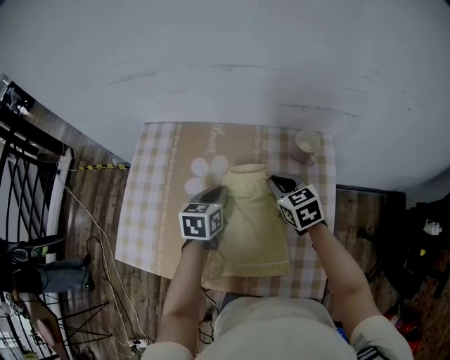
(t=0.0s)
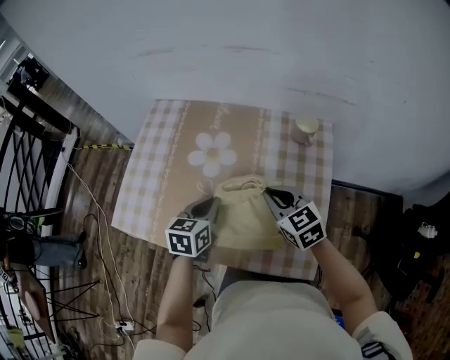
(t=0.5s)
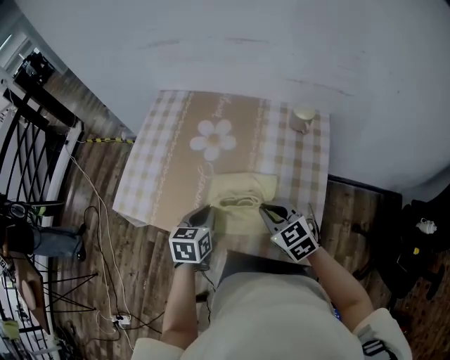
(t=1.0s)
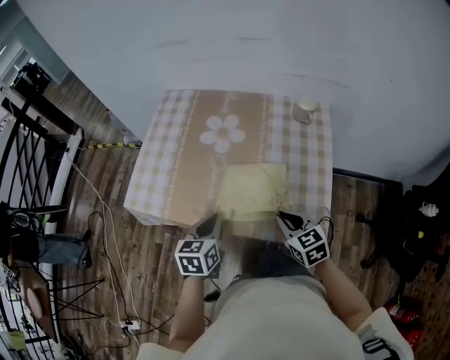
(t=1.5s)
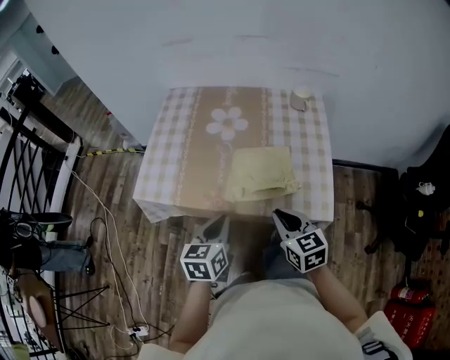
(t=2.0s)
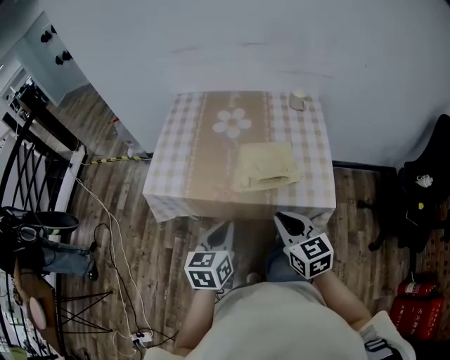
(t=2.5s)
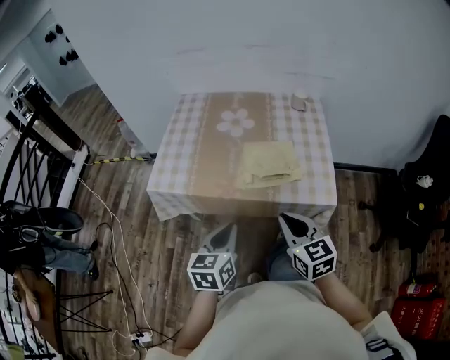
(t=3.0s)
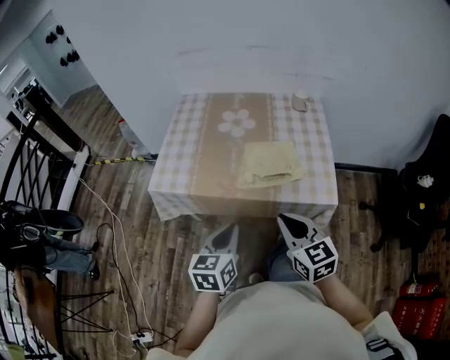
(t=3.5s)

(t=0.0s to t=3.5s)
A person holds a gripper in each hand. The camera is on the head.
t=0.0s - t=2.0s: Both grippers move backward, some 35 cm.
t=2.0s - t=3.5s: The right gripper is displaced backward and upward by about 10 cm. Meanwhile the left gripper heads backward, covering some 10 cm.

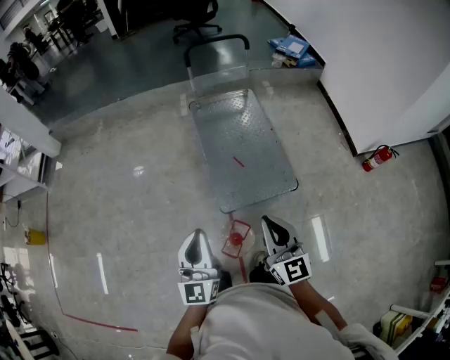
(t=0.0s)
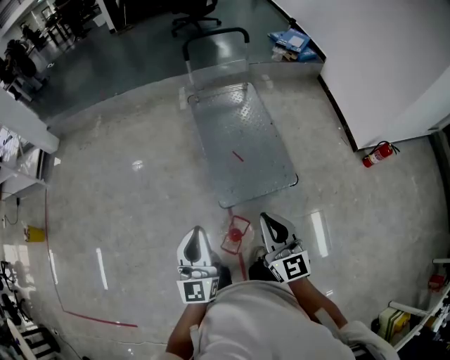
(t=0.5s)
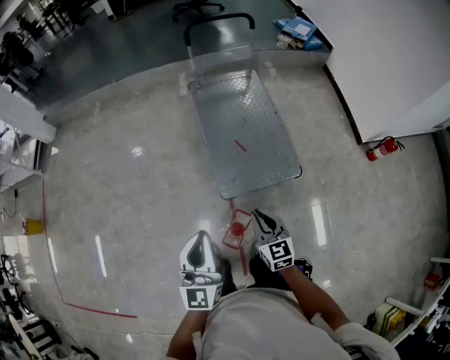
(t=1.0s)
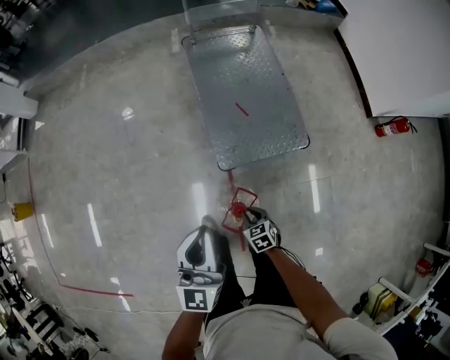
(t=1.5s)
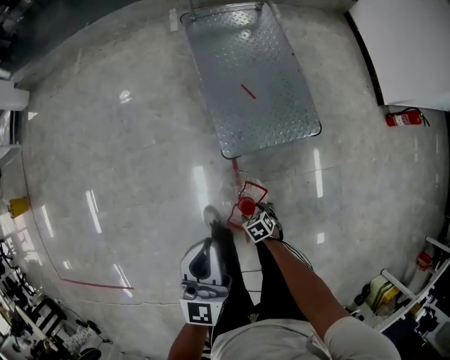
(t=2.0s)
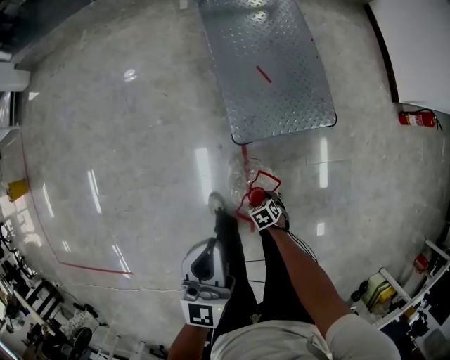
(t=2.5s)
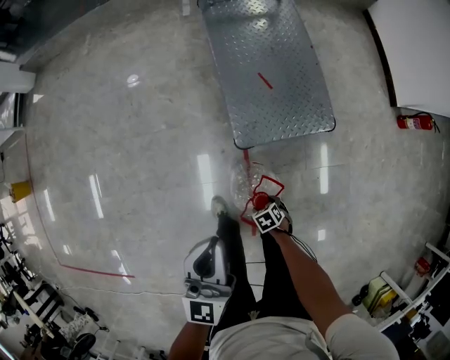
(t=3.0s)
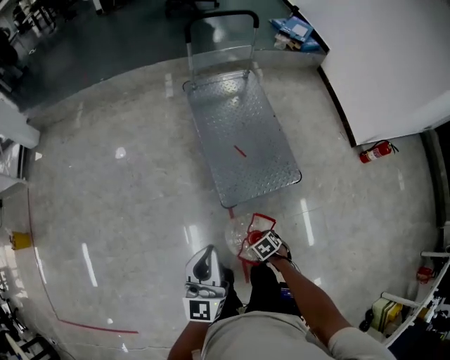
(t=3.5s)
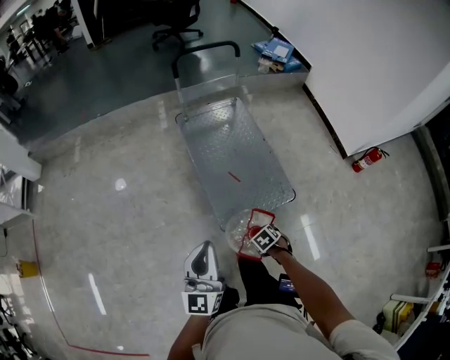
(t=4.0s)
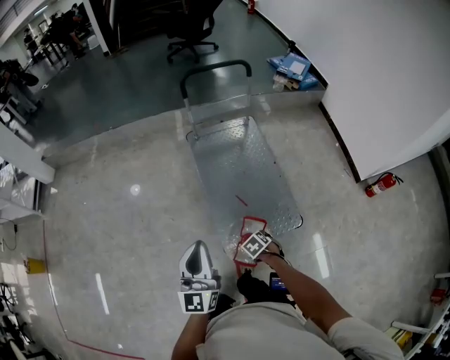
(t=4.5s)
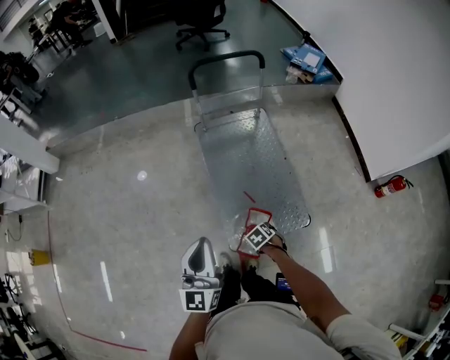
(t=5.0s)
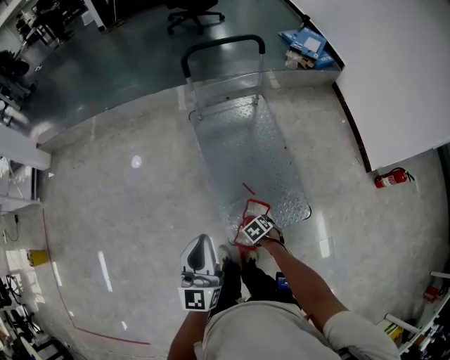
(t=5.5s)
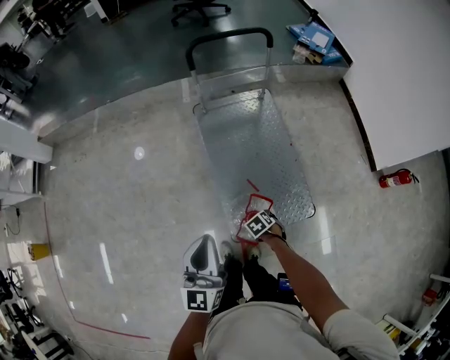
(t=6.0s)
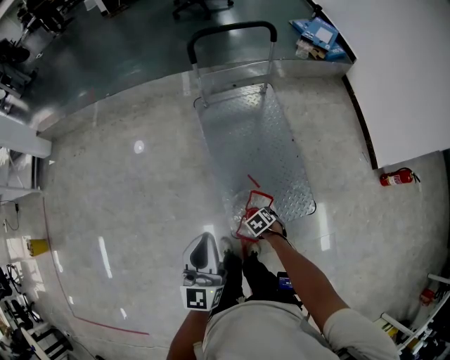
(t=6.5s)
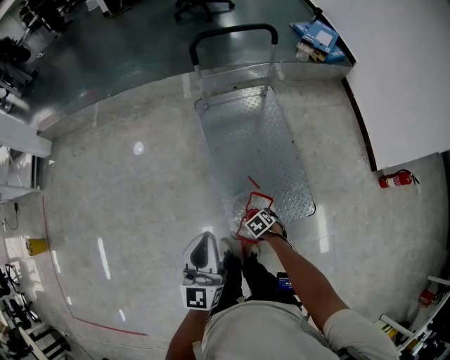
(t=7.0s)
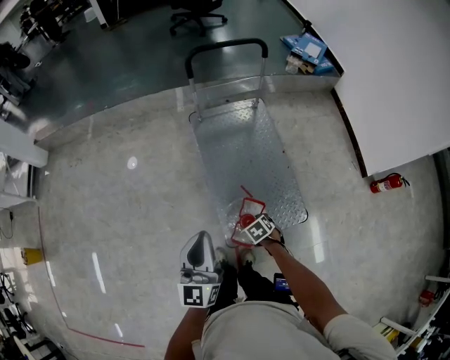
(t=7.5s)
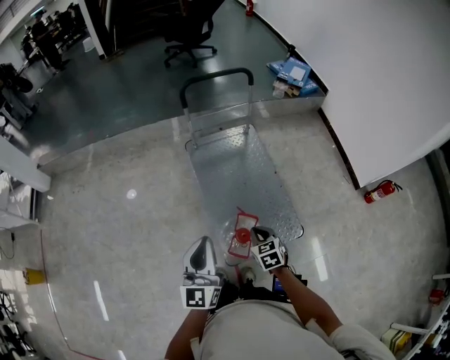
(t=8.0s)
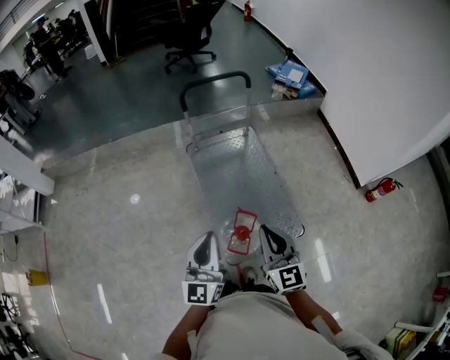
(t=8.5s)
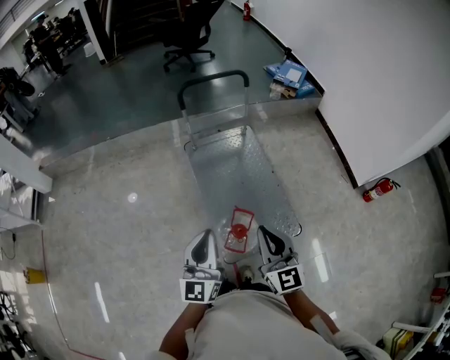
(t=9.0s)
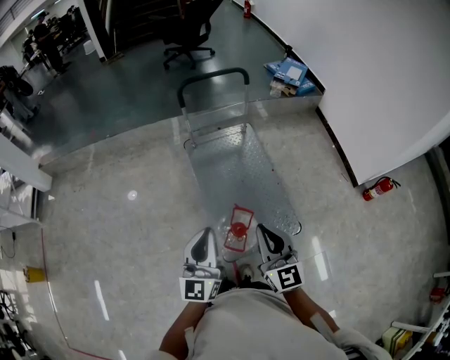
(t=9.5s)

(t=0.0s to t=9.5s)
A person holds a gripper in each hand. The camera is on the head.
t=0.0s - t=2.0s: The right gripper shifts approximately 60 cm downward, tips its fingers downward by about 70 degrees, and opens. The left gripper goes some 15 cm downward.
t=2.0s - t=4.0s: The left gripper moves upward, some 15 cm, while the right gripper is displaced upward by some 25 cm.
t=4.0s - t=5.5s: The left gripper shifts by approximately 25 cm; the right gripper moves about 25 cm.
t=5.5s - t=7.5s: The grippers move only a little.
t=7.5s - t=9.5s: The left gripper heads upward, covering roughly 5 cm. The right gripper is displaced upward by some 40 cm, points its fingers some 70 degrees further upward, and closes up.

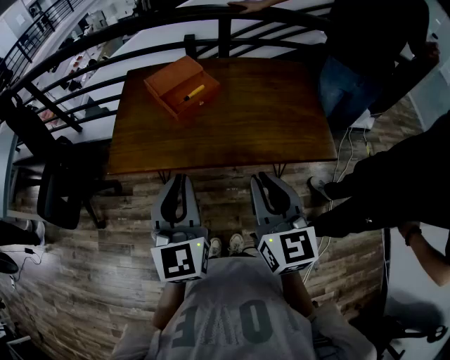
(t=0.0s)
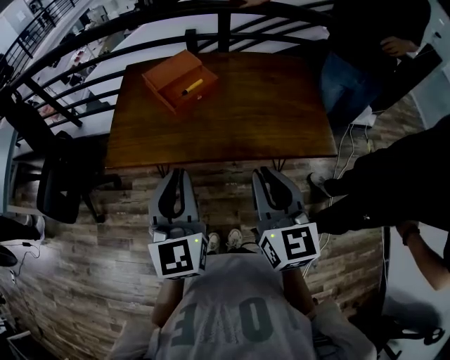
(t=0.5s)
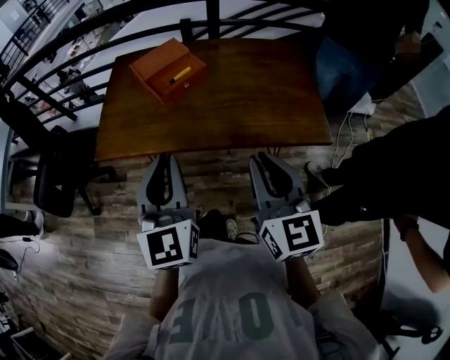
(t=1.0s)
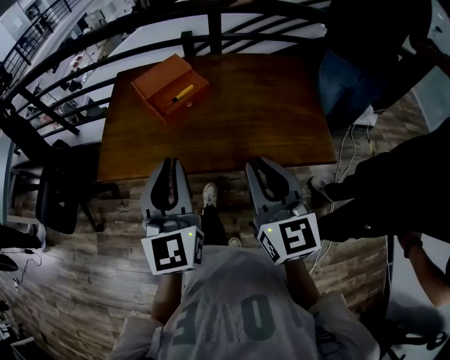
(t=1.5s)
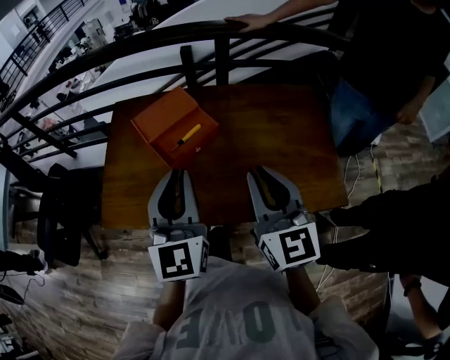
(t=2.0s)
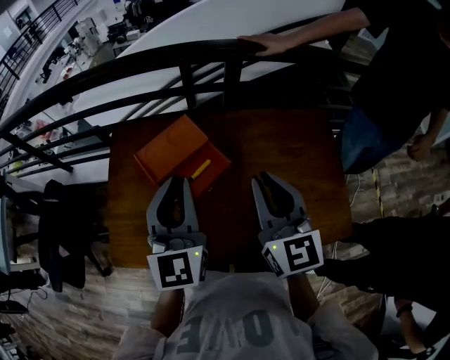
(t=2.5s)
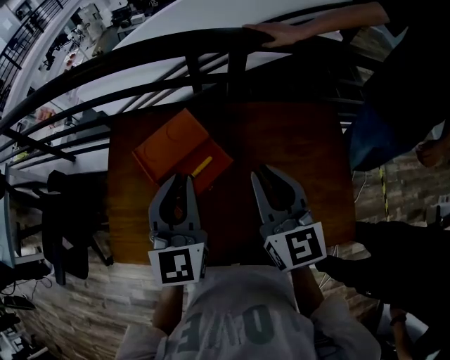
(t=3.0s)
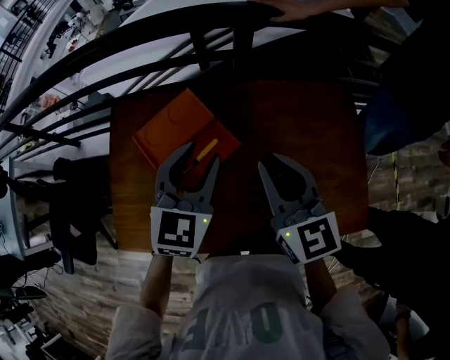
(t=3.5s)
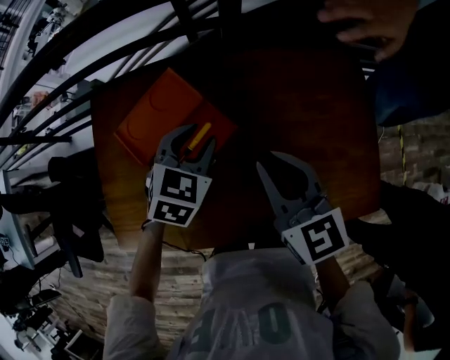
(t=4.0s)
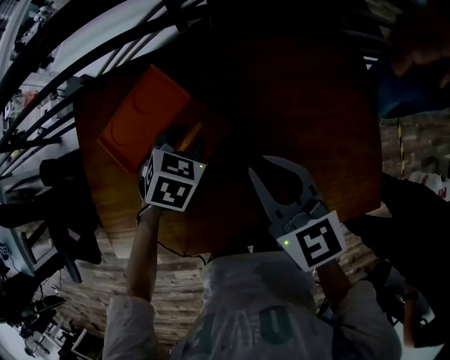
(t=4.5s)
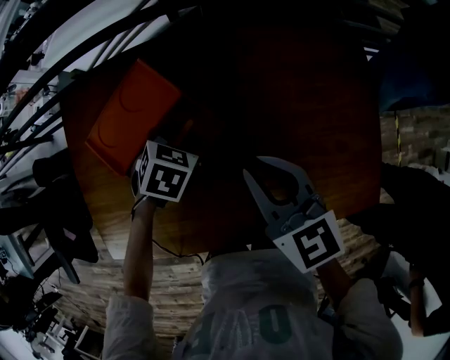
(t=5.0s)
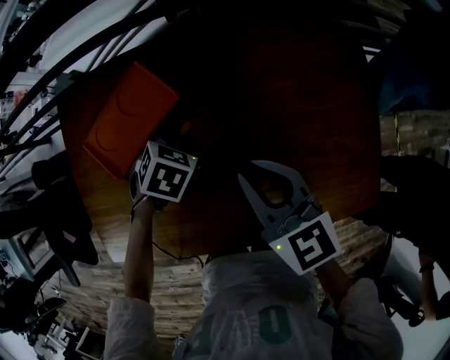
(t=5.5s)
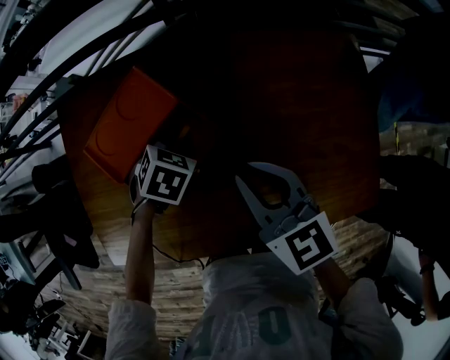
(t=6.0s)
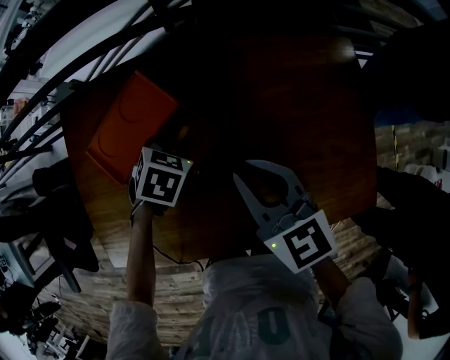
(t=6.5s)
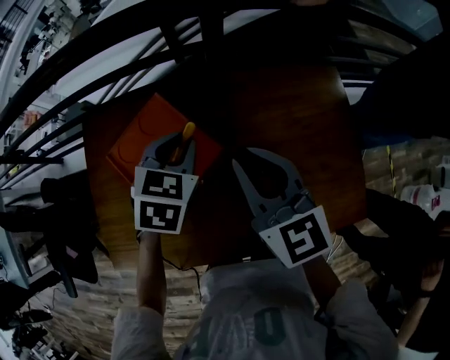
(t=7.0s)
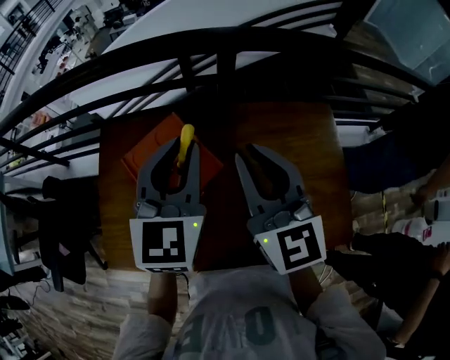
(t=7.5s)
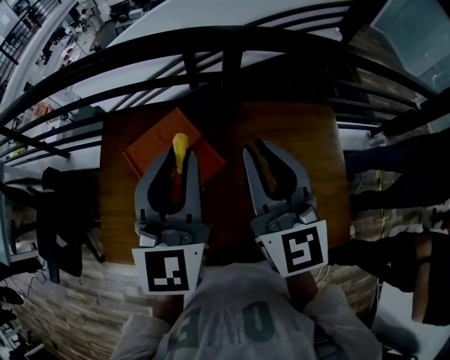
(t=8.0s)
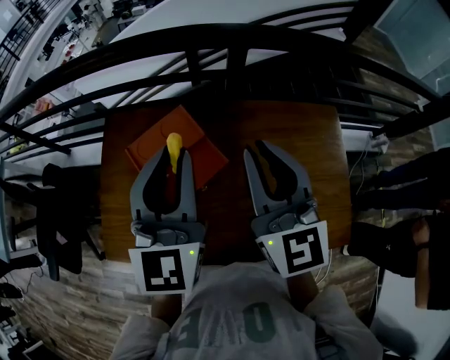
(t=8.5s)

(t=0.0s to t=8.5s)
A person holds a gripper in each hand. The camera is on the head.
t=0.0s - t=2.0s: Both grippers travel together forward, approximately 20 cm.
t=2.0s - t=4.0s: Both grippers travel together forward and downward, roughly 25 cm. The left gripper angles its fingers downward, by about 40 degrees, and opens its fingers.
t=4.0s - t=6.5s: The left gripper is displaced downward by about 10 cm, and swivels approximately 20 degrees.
t=6.5s - t=8.5s: The right gripper shifts about 20 cm upward, and changes its angle by approximately 30 degrees. The left gripper is displaced upward by approximately 35 cm, and angles its fingers upward, by about 70 degrees.

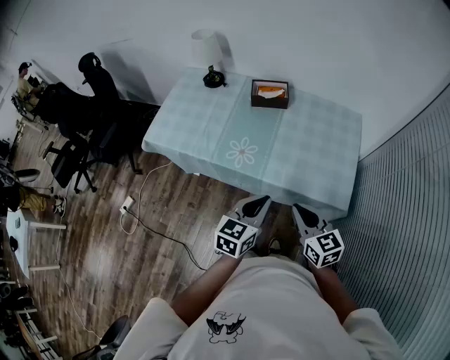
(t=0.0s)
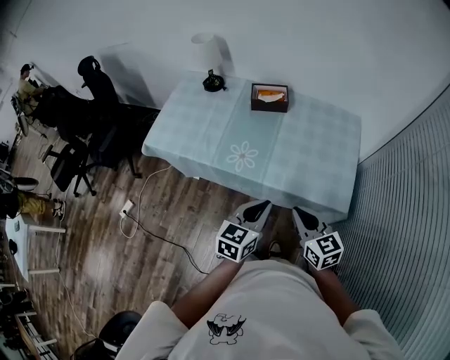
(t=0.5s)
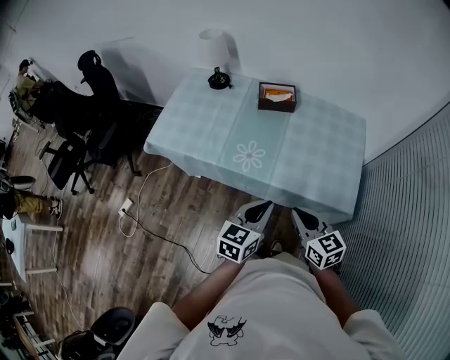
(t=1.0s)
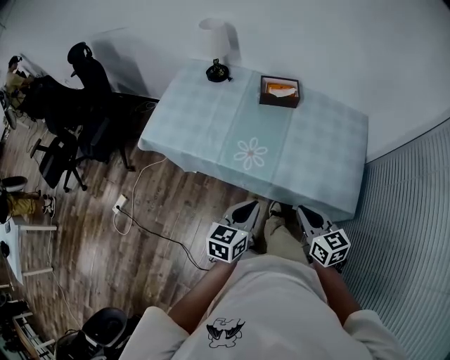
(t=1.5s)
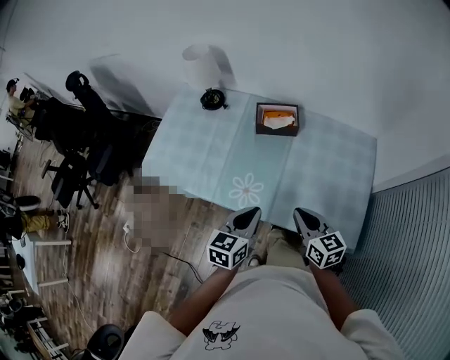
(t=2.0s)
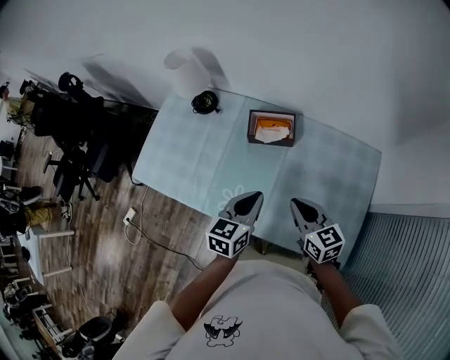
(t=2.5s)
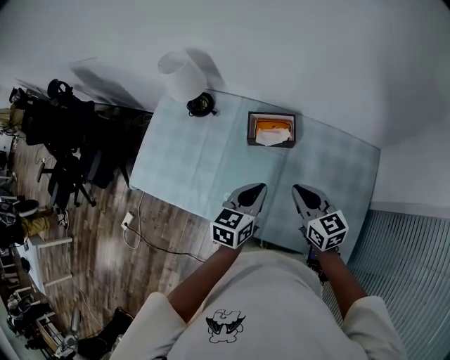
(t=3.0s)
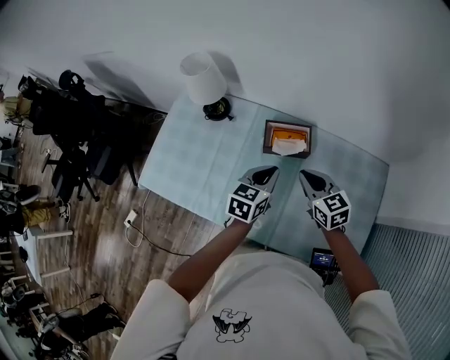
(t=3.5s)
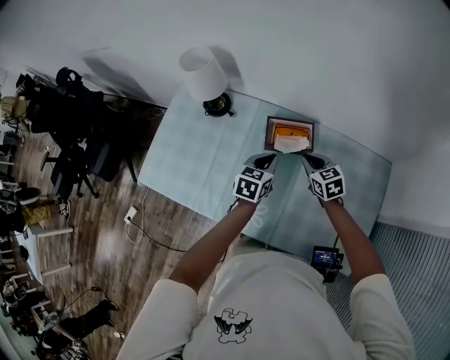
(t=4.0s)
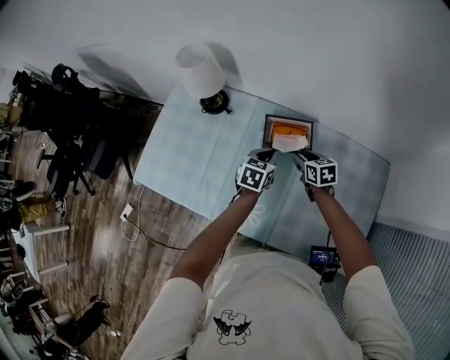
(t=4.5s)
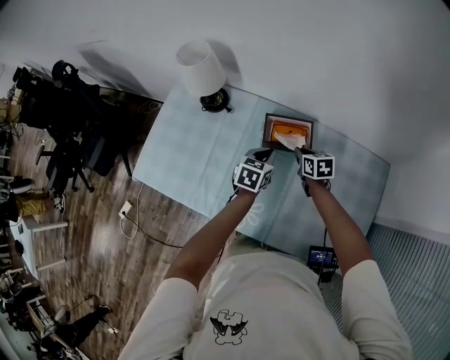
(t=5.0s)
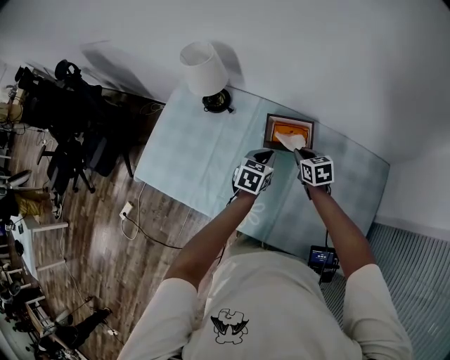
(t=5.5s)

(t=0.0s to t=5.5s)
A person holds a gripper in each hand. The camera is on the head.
t=0.0s - t=2.0s: The two grippers go approximately 20 cm forward.
t=2.0s - t=3.5s: Both grippers travel together forward, roughly 25 cm.
t=3.5s - t=5.5s: The grippers both shift downward and forward by roughly 15 cm. The right gripper opens, then closes once more.
